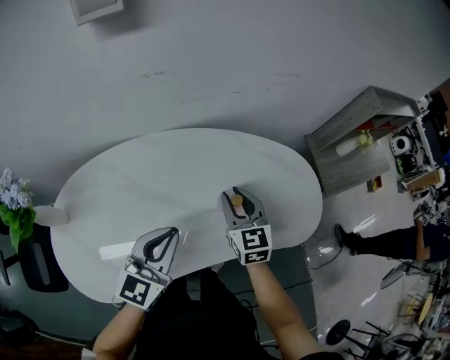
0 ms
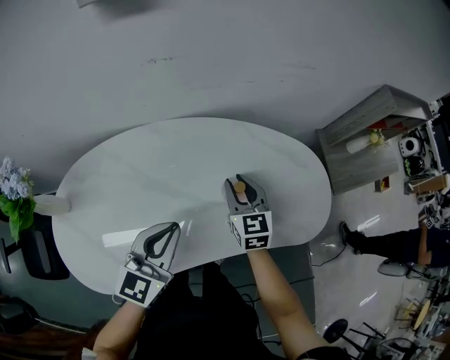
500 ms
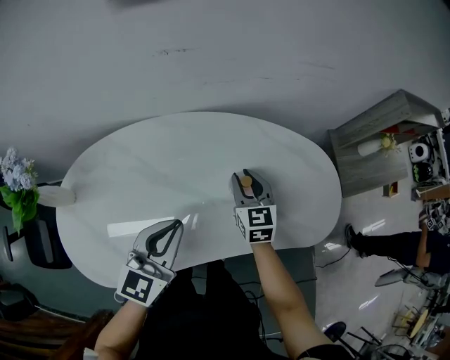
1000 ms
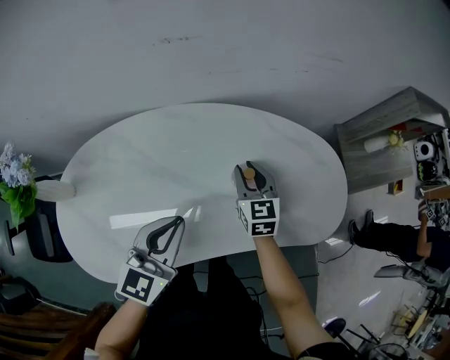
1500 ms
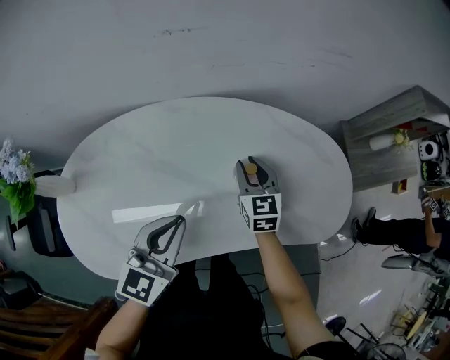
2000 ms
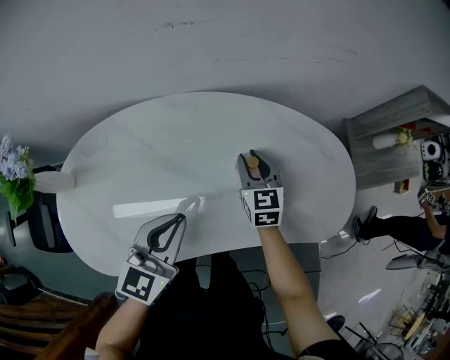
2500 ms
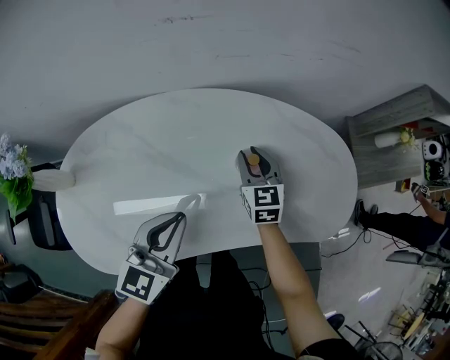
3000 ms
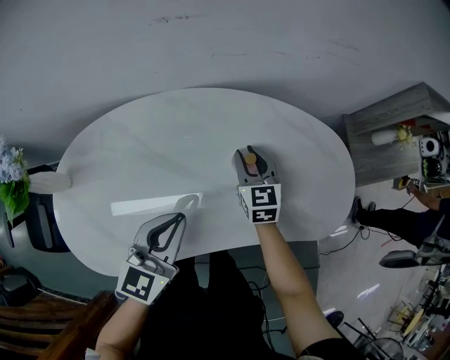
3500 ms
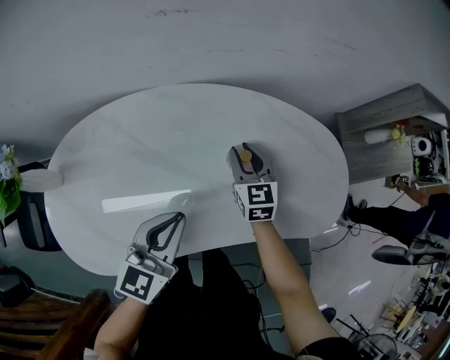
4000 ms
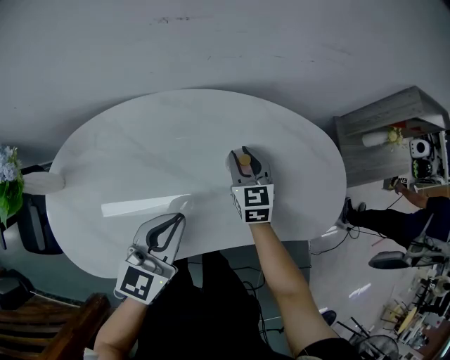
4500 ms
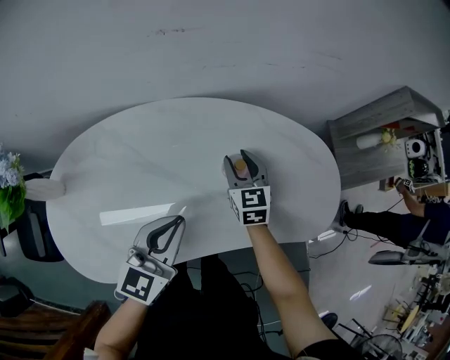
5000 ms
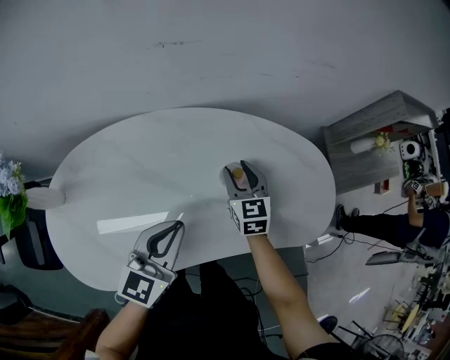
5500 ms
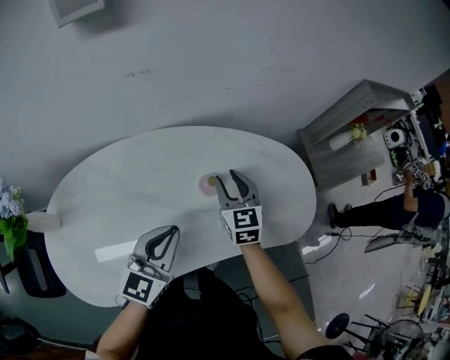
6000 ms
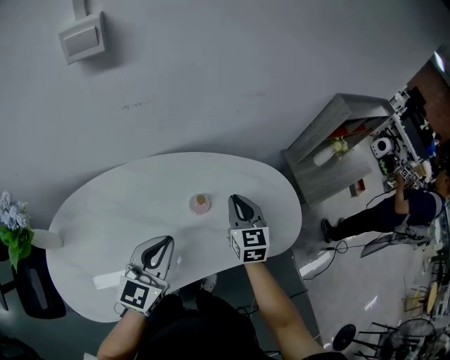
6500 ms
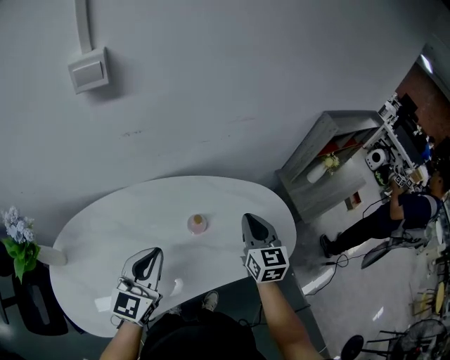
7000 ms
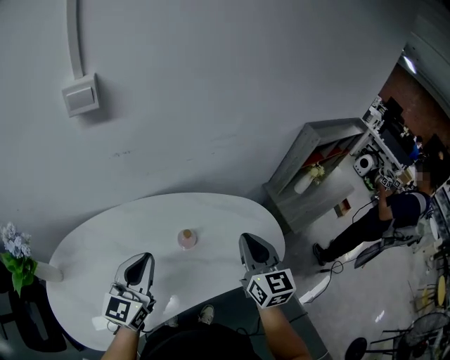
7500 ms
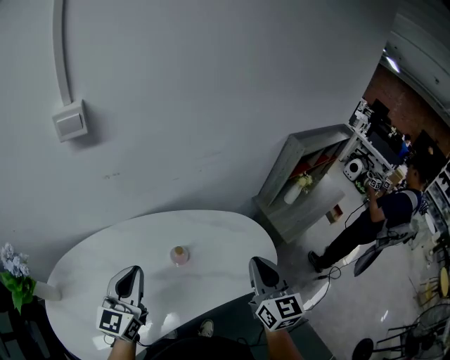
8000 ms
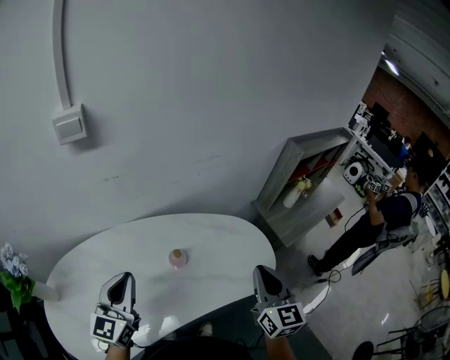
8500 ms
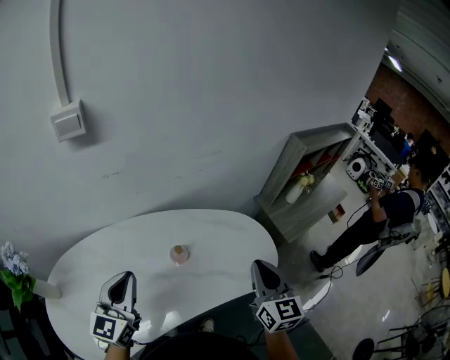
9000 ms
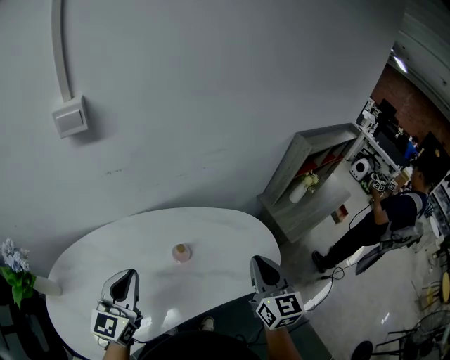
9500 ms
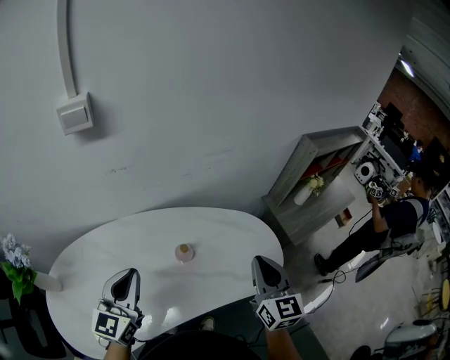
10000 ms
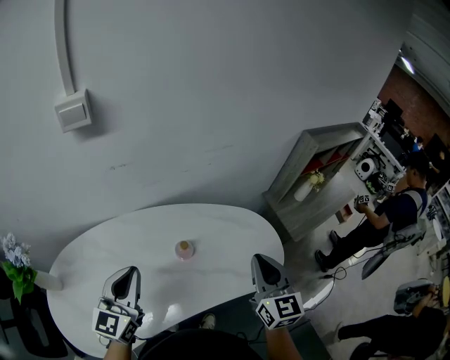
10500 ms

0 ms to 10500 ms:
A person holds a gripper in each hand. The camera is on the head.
0 ms to 2000 ms: The right gripper heads downward and forward, covering some 10 cm.
2000 ms to 4000 ms: The grippers move only a little.
4000 ms to 6500 ms: The left gripper heads upward, covering some 10 cm; the right gripper moves upward and to the right, approximately 15 cm.
6500 ms to 8500 ms: The right gripper is displaced upward, to the right and backward by approximately 25 cm. The left gripper travels upward by roughly 10 cm.
8500 ms to 10500 ms: The grippers make only small movements.

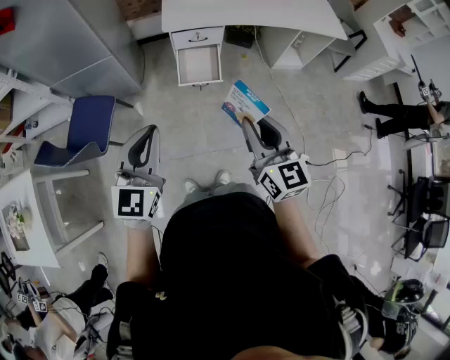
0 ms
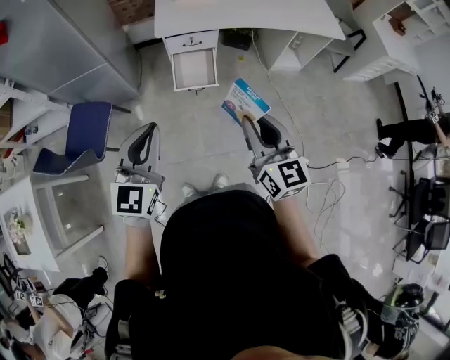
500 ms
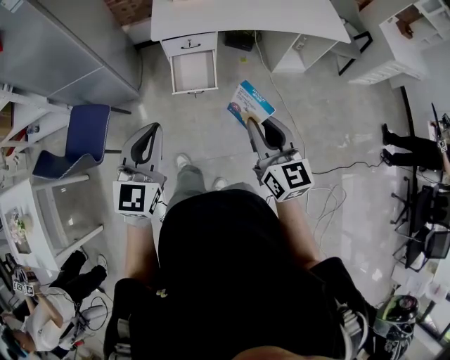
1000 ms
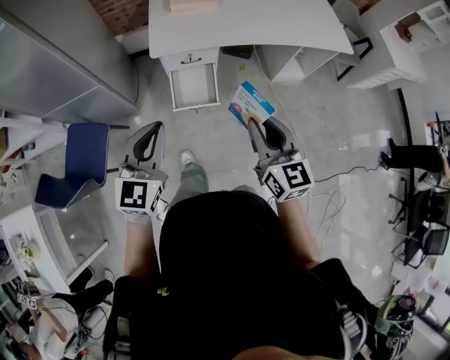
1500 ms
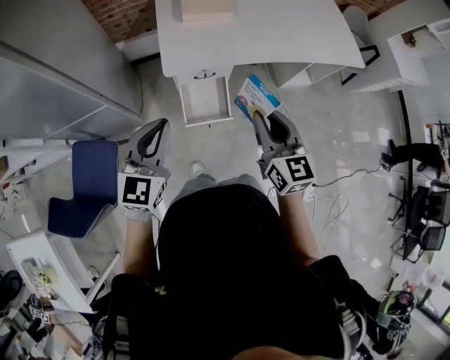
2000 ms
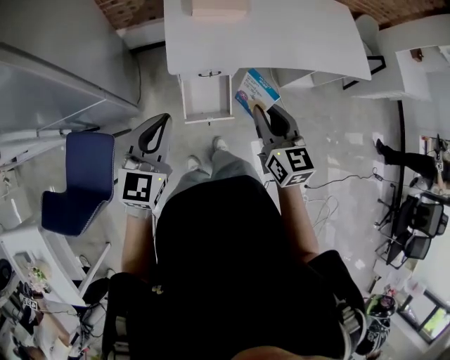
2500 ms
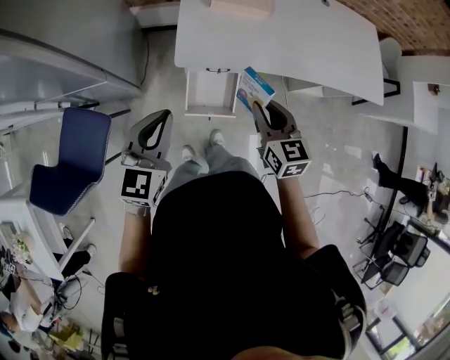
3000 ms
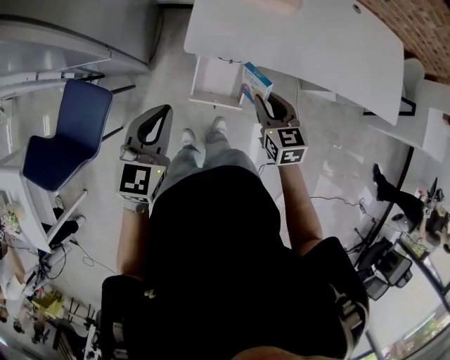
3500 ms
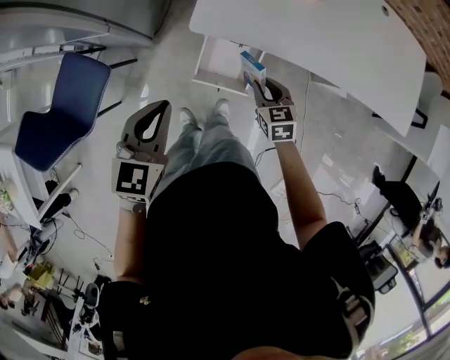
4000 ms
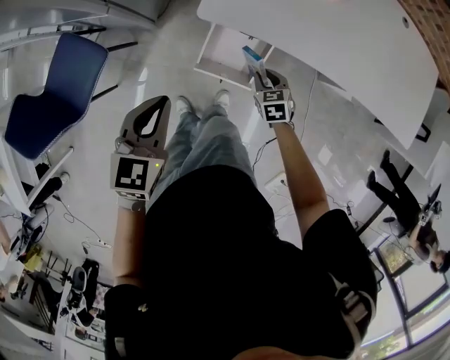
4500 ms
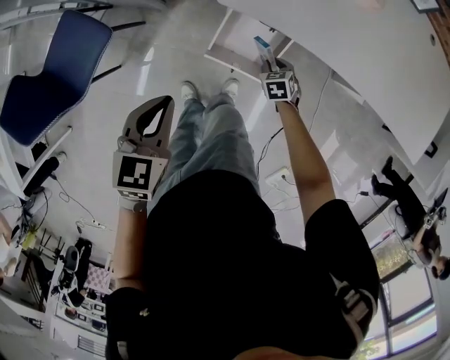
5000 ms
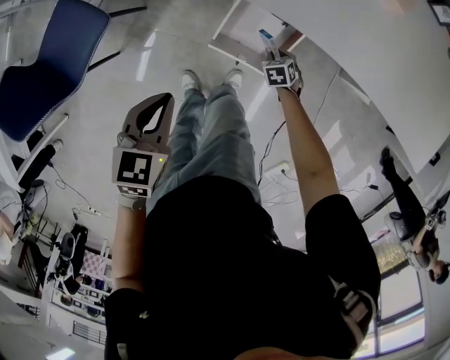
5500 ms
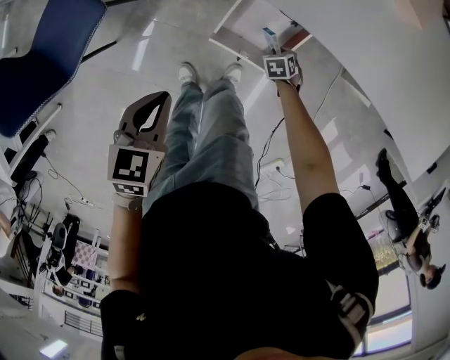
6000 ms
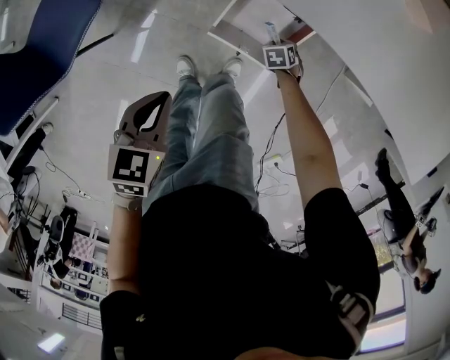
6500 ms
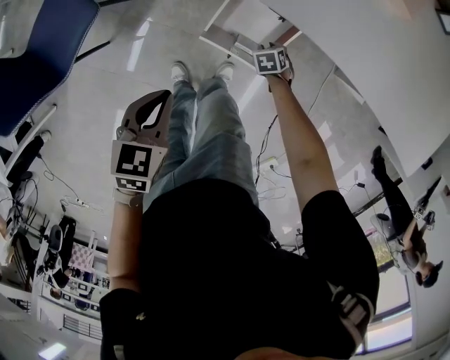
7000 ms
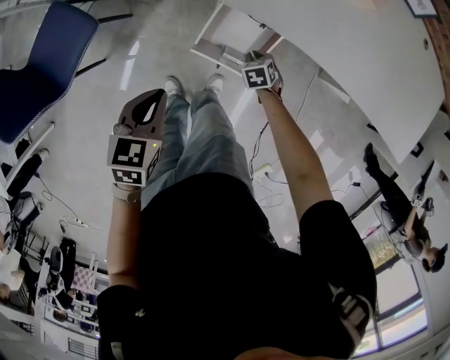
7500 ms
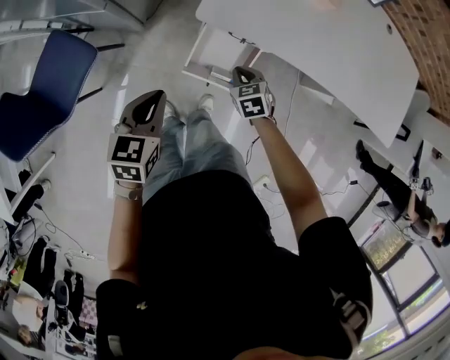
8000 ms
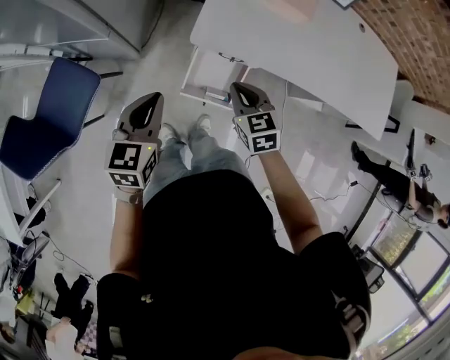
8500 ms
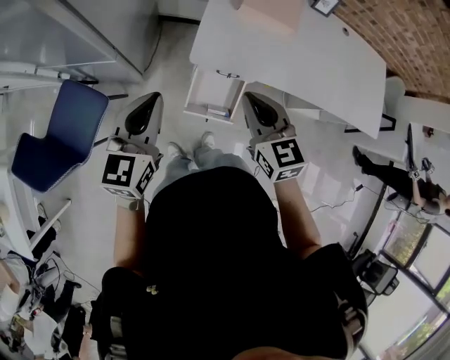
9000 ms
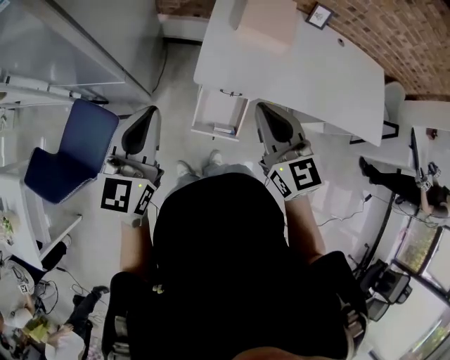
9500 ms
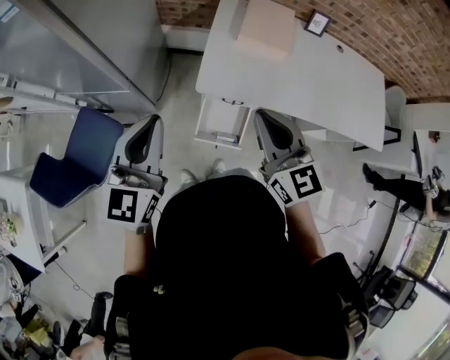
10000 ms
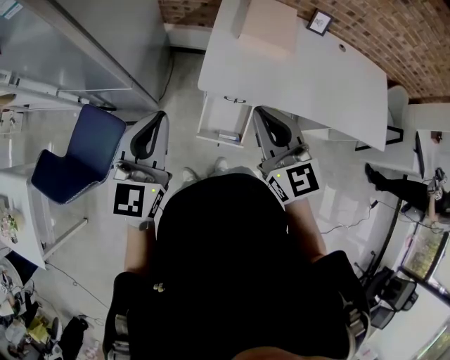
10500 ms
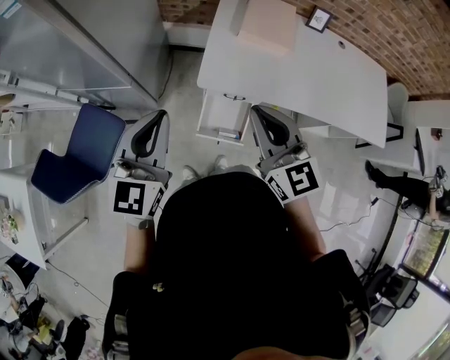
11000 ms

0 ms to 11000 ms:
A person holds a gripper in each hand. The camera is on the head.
0 ms to 2000 ms: Both grippers travel together forward, approximately 35 cm.
2000 ms to 3500 ms: The right gripper moves downward and forward, roughly 20 cm, and swivels some 30 degrees. Meanwhile the left gripper is displaced downward and forward by approximately 10 cm, and rotates approximately 20 degrees.
3500 ms to 5500 ms: The right gripper goes about 40 cm downward, and tilts its fingers about 40 degrees downward. The left gripper heads downward, covering roughly 20 cm, and rotates approximately 30 degrees.
5500 ms to 7500 ms: The right gripper goes about 5 cm upward.
7500 ms to 9000 ms: The left gripper goes some 25 cm upward, and tips its fingers upward by about 30 degrees; the right gripper is displaced upward by roughly 50 cm, and angles its fingers upward, by approximately 50 degrees.
9000 ms to 11000 ms: The grippers both shift upward by some 10 cm.

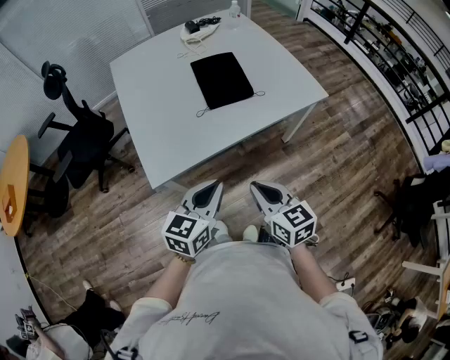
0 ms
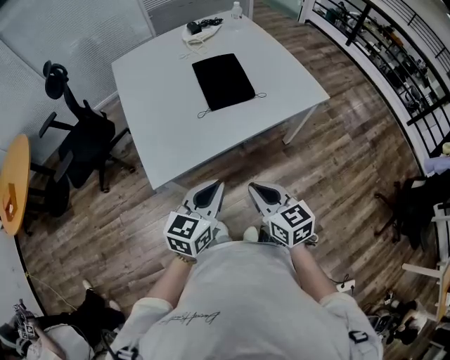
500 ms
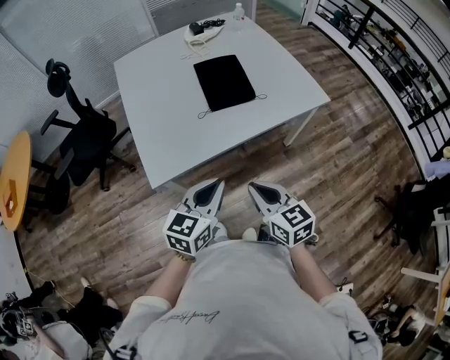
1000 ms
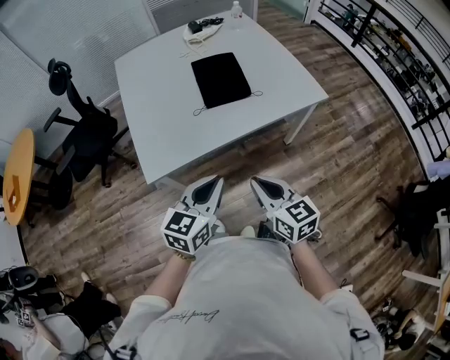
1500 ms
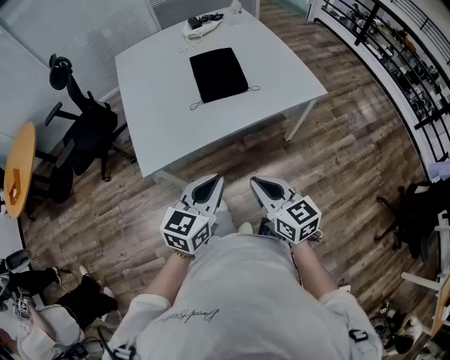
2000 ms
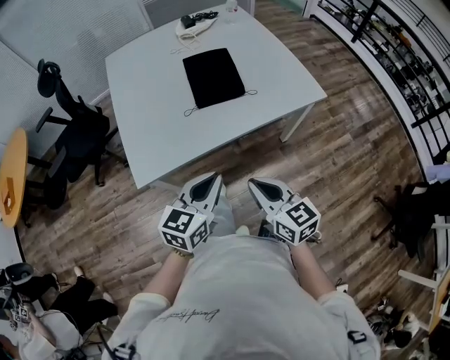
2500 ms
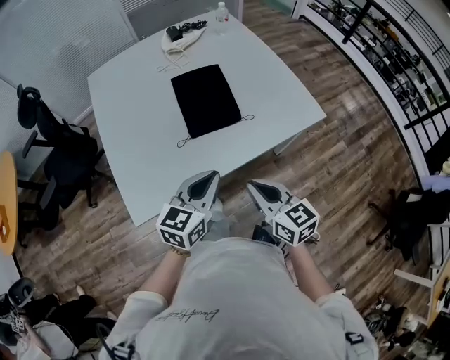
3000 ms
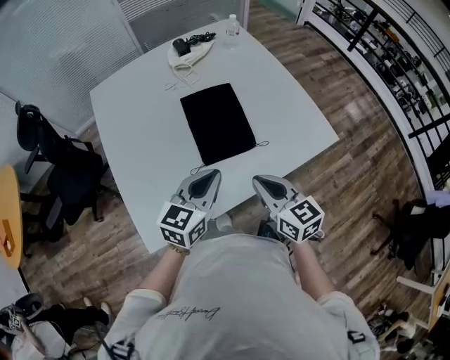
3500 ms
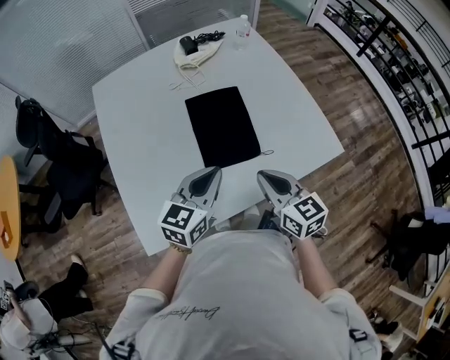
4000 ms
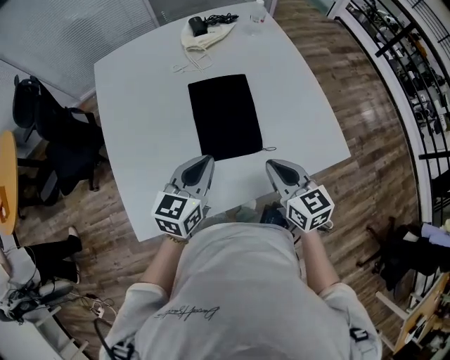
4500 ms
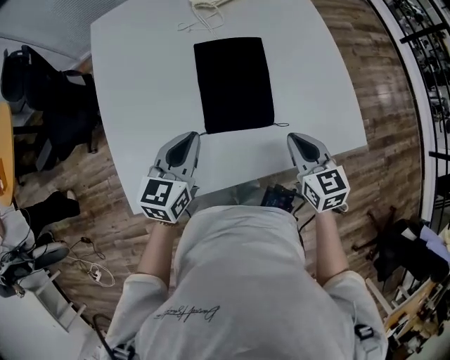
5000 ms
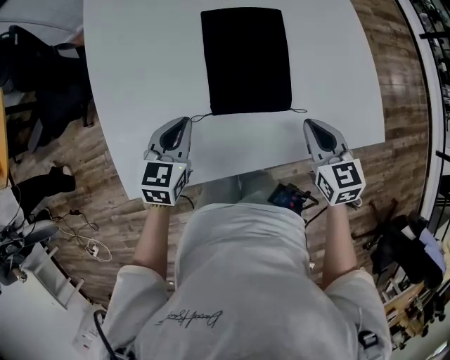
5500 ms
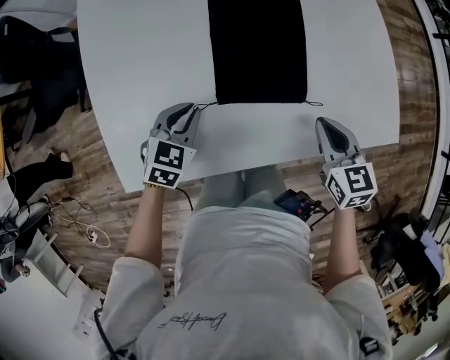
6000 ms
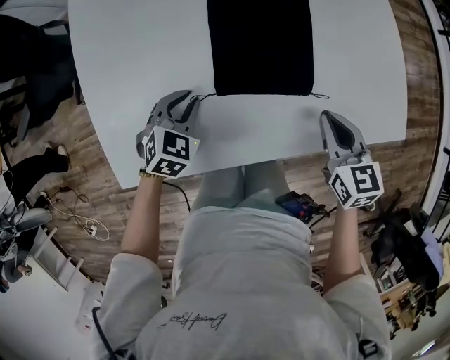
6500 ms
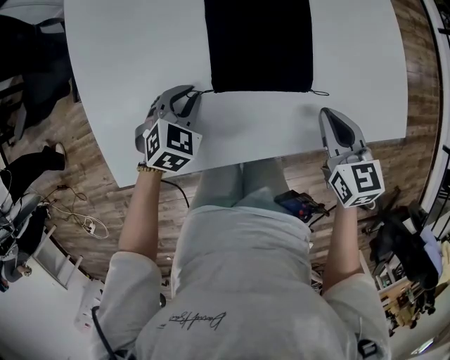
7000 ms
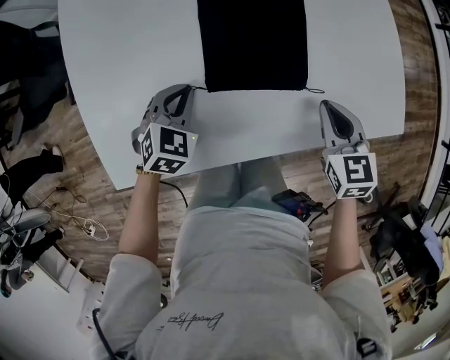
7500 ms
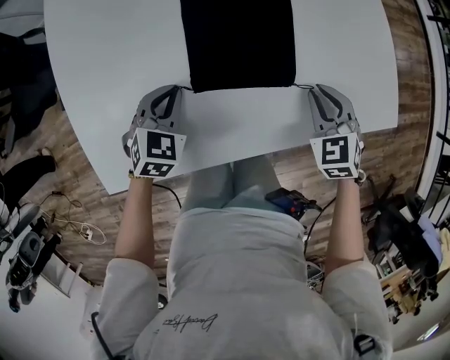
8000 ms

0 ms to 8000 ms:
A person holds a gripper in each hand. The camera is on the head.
0 ms to 2000 ms: The grippers both shift to the right by roughly 5 cm.
2000 ms to 4000 ms: The grippers both shift forward by about 30 cm.
4000 ms to 6000 ms: The right gripper travels downward and to the right by some 15 cm, and swivels roughly 20 degrees; the left gripper moves downward and to the left, approximately 25 cm, and tips its fingers downward by roughly 30 degrees.
6000 ms to 8000 ms: The right gripper is displaced downward by roughly 5 cm, and rotates about 30 degrees.
